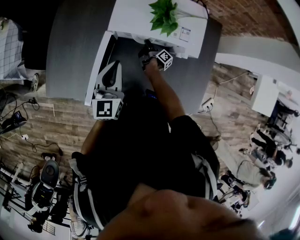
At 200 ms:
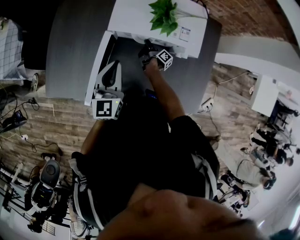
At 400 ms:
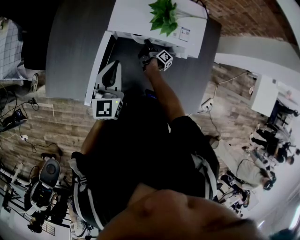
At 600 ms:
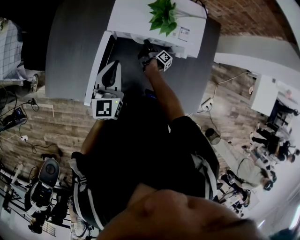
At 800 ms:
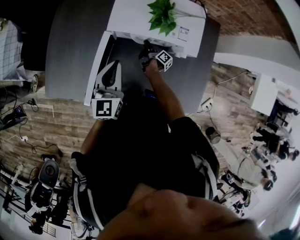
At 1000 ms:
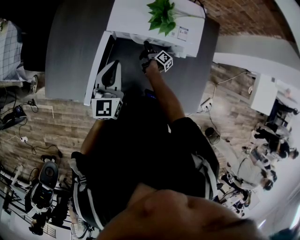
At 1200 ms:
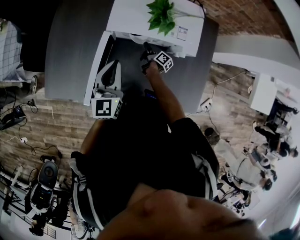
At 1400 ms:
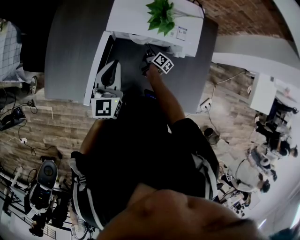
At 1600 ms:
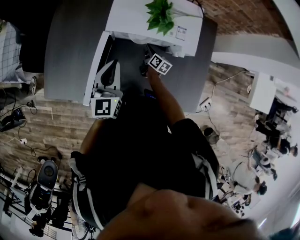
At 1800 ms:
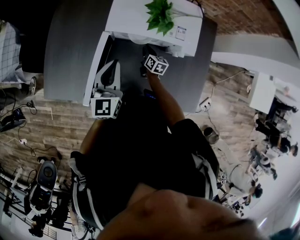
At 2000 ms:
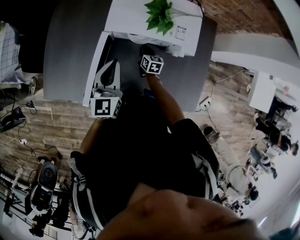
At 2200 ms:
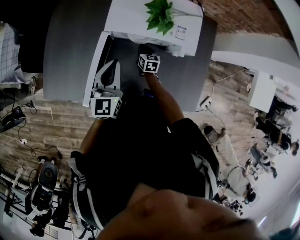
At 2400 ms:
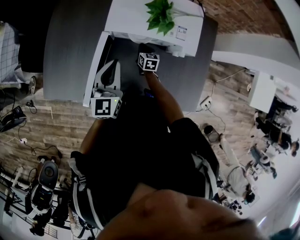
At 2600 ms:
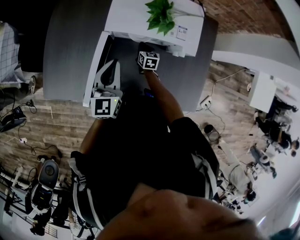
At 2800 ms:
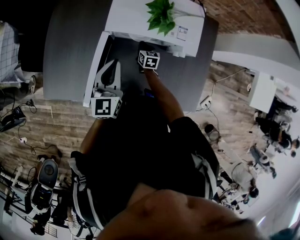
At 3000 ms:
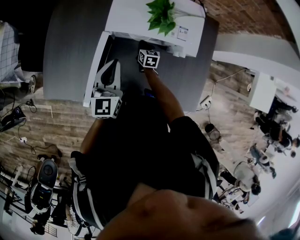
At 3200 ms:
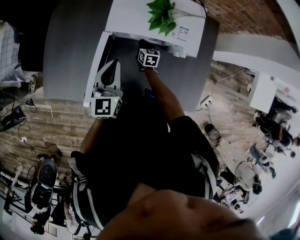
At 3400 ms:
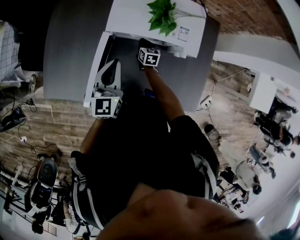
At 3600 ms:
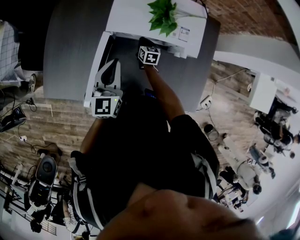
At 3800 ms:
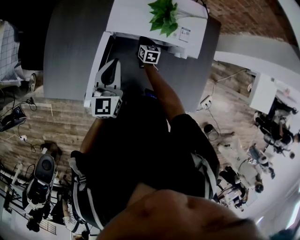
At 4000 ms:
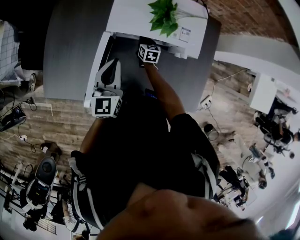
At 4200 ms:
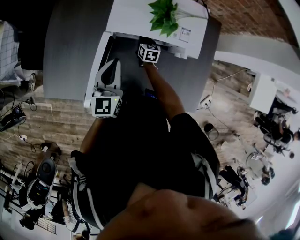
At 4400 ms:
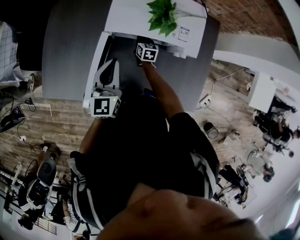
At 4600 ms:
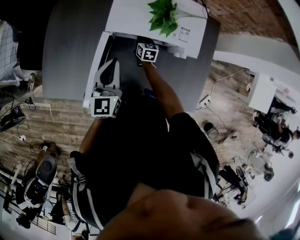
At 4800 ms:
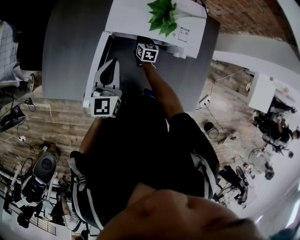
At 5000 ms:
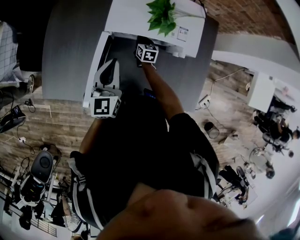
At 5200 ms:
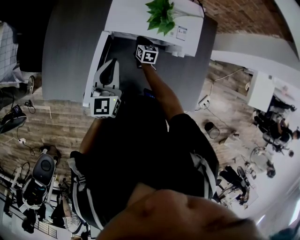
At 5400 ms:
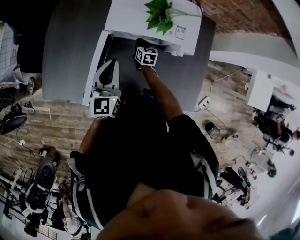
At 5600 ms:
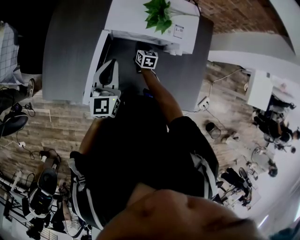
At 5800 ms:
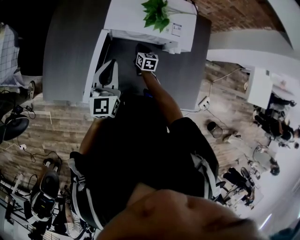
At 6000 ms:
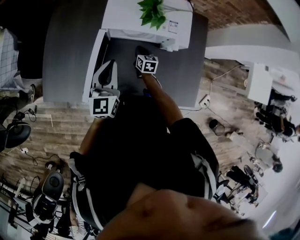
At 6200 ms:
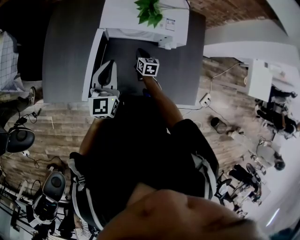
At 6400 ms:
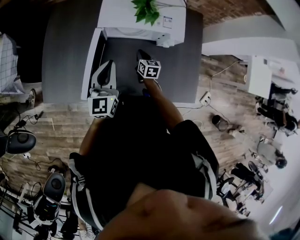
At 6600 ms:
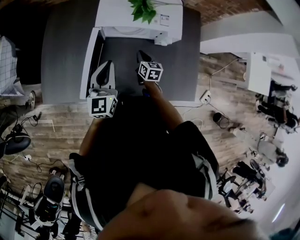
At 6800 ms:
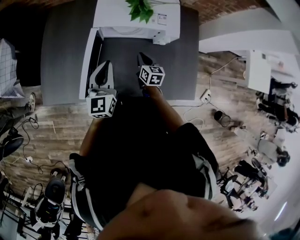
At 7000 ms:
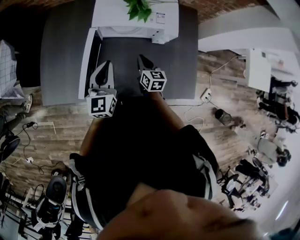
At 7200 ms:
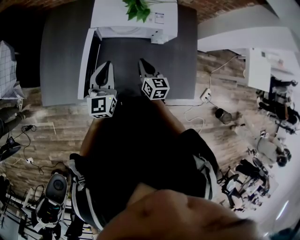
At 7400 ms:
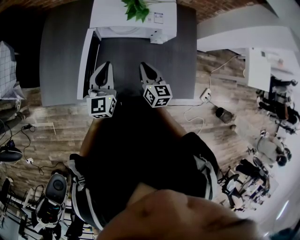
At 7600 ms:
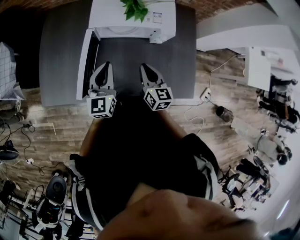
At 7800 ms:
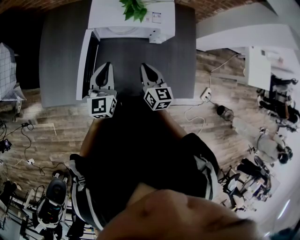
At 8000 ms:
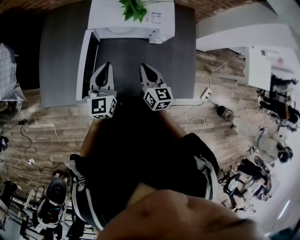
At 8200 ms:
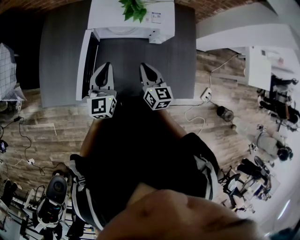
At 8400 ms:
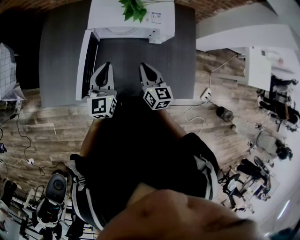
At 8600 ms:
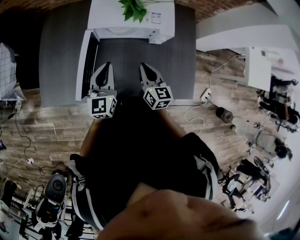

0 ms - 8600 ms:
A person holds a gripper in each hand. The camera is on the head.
5800 ms - 7200 ms: The left gripper moves approximately 5 cm.

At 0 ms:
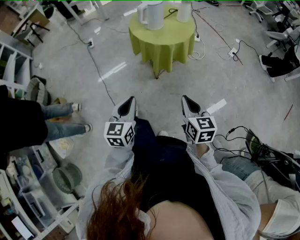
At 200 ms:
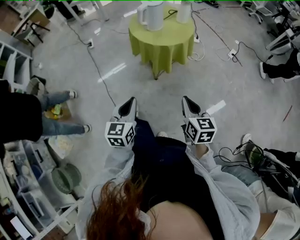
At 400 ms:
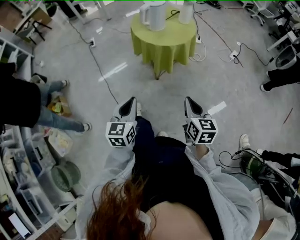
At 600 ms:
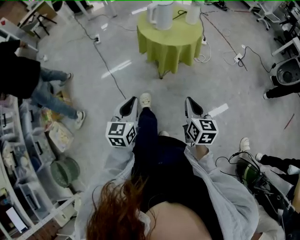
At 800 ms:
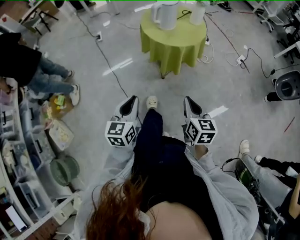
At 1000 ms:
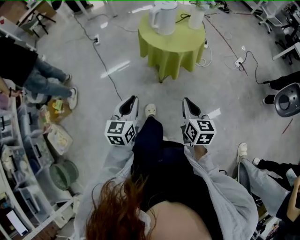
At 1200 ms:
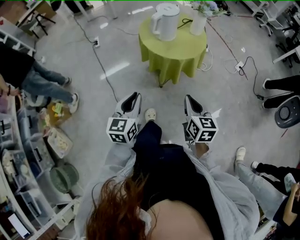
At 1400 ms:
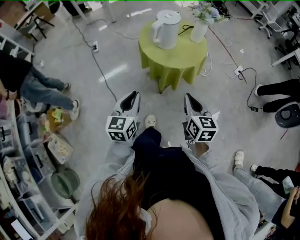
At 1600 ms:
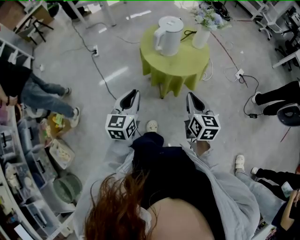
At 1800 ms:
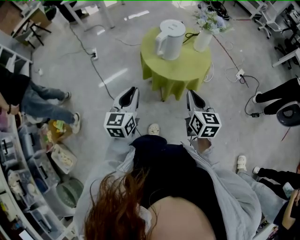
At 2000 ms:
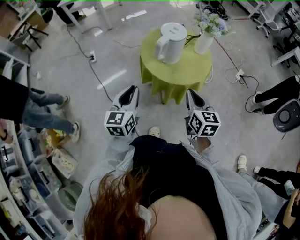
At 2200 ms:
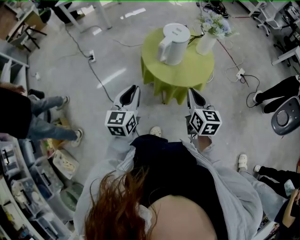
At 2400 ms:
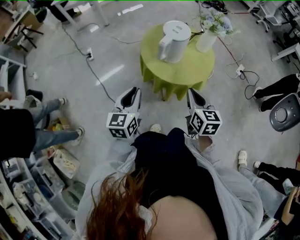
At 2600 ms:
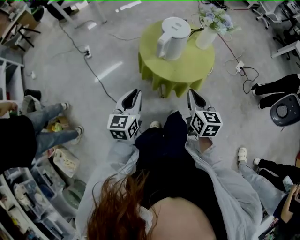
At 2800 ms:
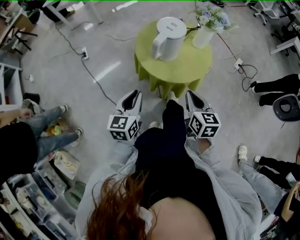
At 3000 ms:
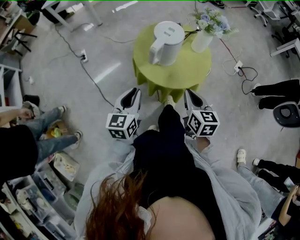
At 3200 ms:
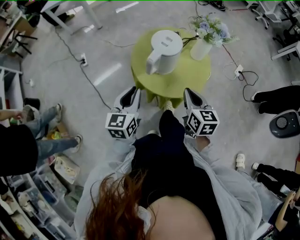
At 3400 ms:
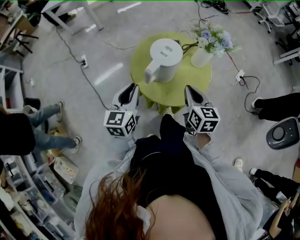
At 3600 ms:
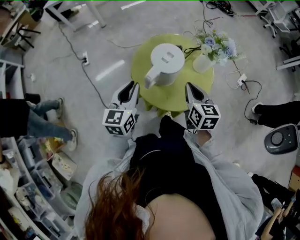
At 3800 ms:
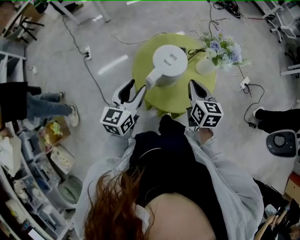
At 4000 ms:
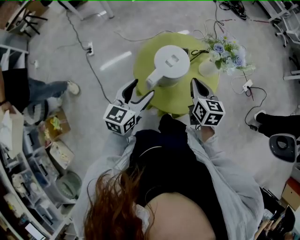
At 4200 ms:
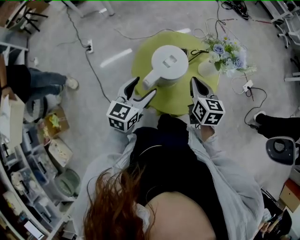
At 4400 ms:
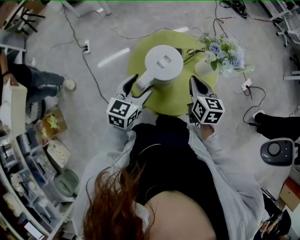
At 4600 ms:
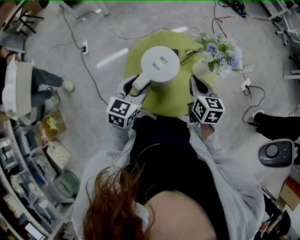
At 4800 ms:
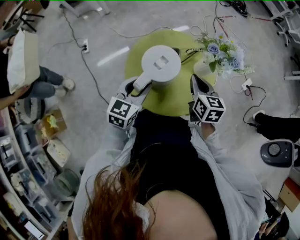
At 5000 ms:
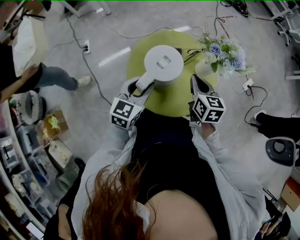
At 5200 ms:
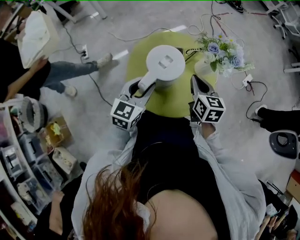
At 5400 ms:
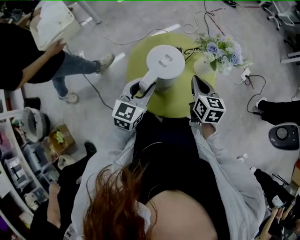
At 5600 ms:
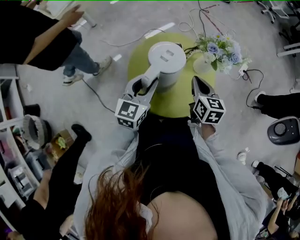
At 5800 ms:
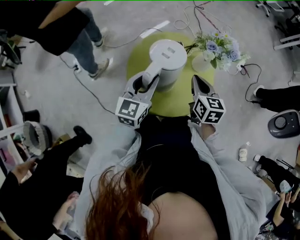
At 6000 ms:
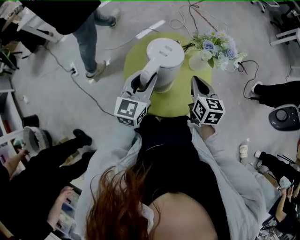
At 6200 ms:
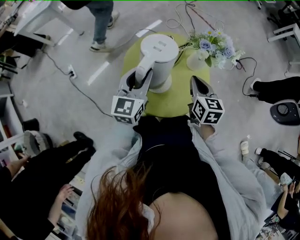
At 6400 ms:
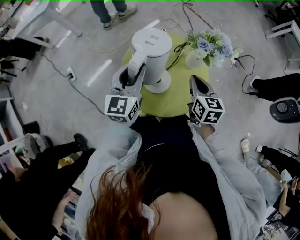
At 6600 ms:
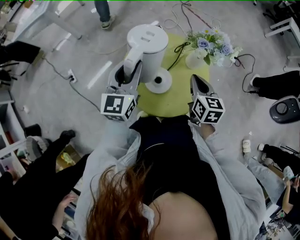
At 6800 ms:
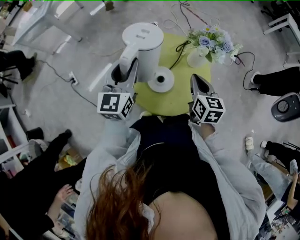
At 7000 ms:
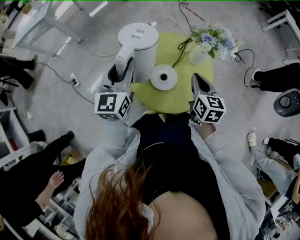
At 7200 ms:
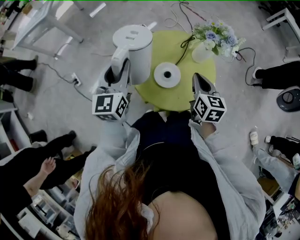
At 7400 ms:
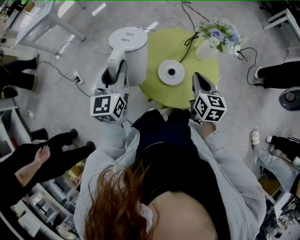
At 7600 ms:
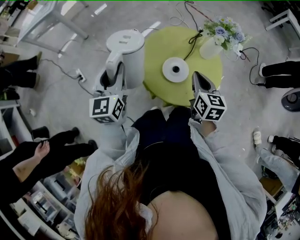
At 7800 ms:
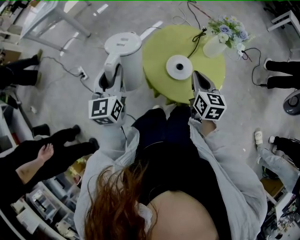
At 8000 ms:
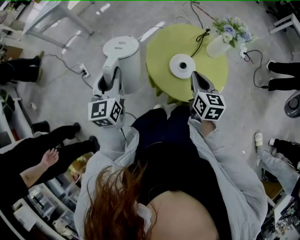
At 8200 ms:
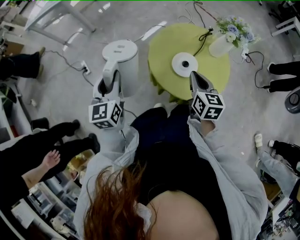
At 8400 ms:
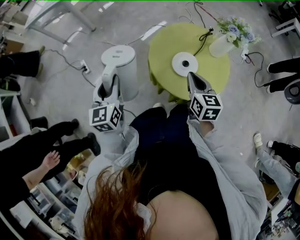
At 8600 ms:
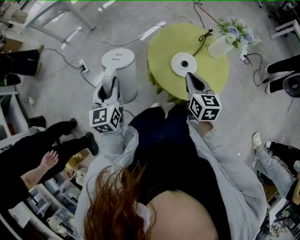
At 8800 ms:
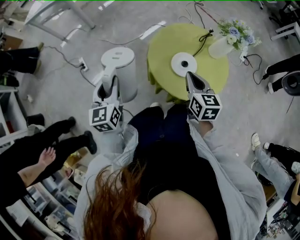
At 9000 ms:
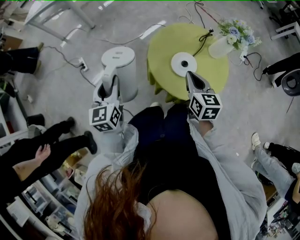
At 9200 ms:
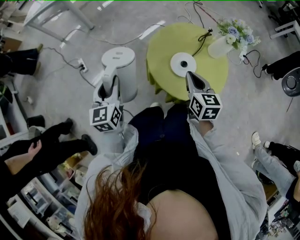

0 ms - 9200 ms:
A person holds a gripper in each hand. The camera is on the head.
0 ms - 1600 ms: Both grippers move forward, approximately 20 cm.
1600 ms - 3000 ms: Both grippers travel together forward, roughly 15 cm.
3000 ms - 4600 ms: The left gripper heads forward and to the right, covering some 20 cm, and opens its fingers. The right gripper travels forward by about 20 cm.
4600 ms - 6200 ms: The left gripper travels forward and upward by some 10 cm.
6200 ms - 7600 ms: The left gripper is displaced to the left by roughly 20 cm. The right gripper shifts roughly 10 cm to the left and backward.
7600 ms - 9200 ms: The left gripper travels to the left, backward and downward by some 15 cm; the right gripper shifts about 5 cm to the left.

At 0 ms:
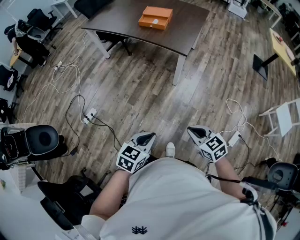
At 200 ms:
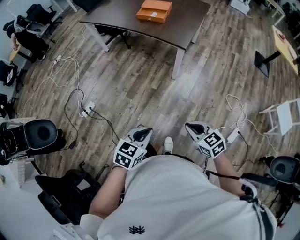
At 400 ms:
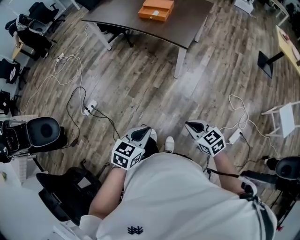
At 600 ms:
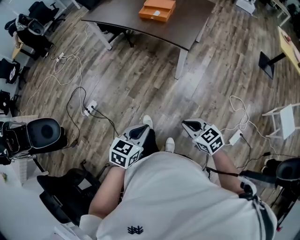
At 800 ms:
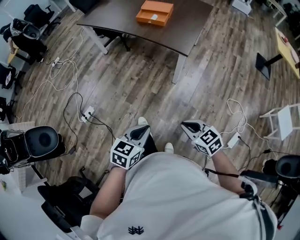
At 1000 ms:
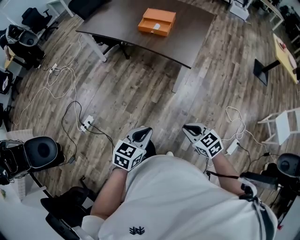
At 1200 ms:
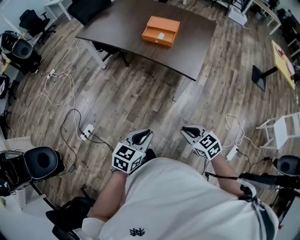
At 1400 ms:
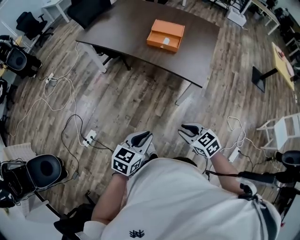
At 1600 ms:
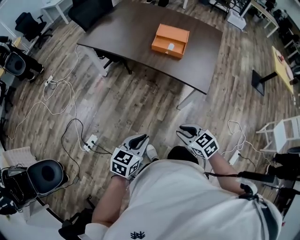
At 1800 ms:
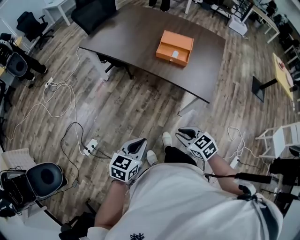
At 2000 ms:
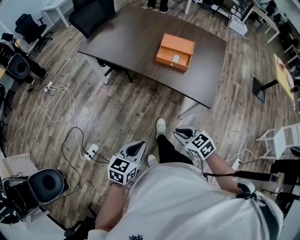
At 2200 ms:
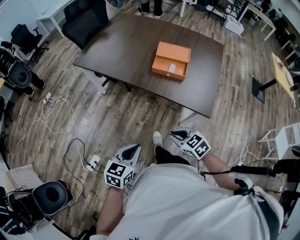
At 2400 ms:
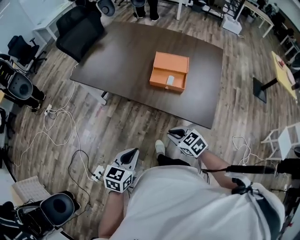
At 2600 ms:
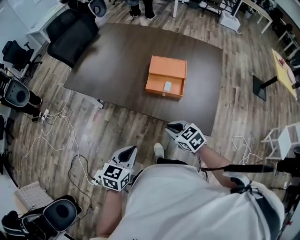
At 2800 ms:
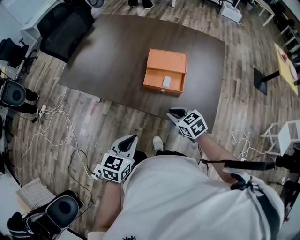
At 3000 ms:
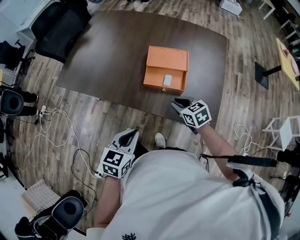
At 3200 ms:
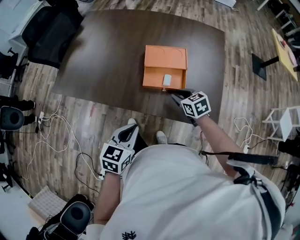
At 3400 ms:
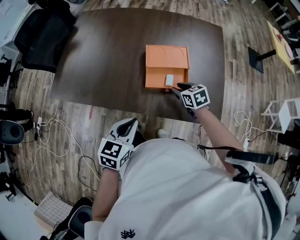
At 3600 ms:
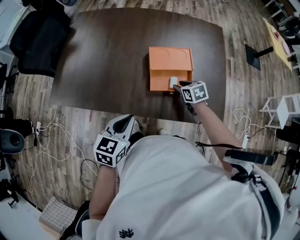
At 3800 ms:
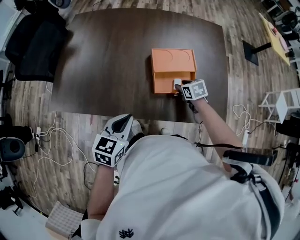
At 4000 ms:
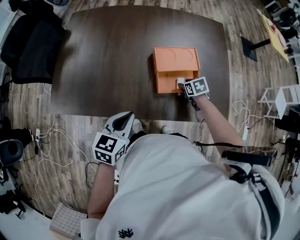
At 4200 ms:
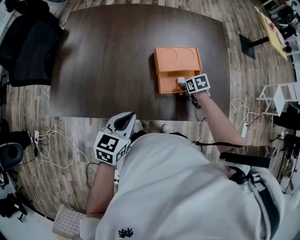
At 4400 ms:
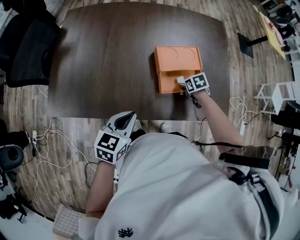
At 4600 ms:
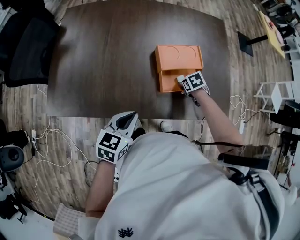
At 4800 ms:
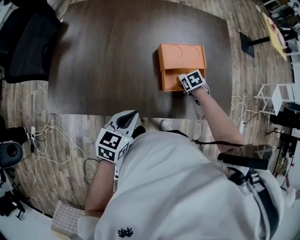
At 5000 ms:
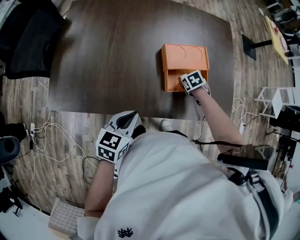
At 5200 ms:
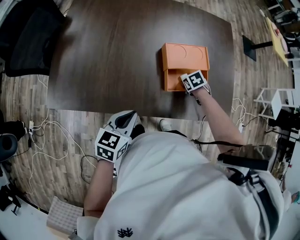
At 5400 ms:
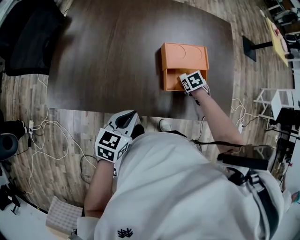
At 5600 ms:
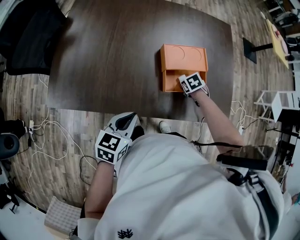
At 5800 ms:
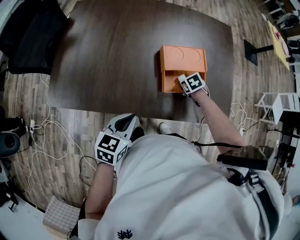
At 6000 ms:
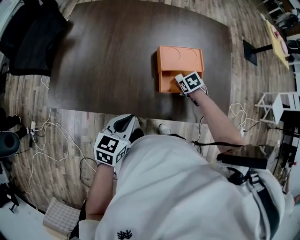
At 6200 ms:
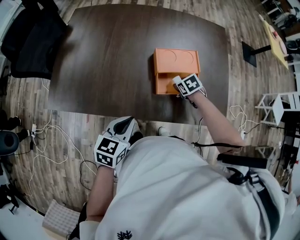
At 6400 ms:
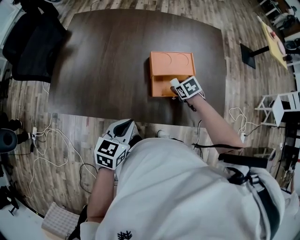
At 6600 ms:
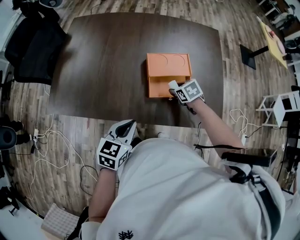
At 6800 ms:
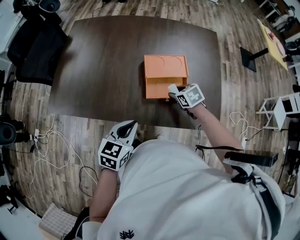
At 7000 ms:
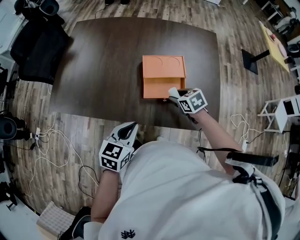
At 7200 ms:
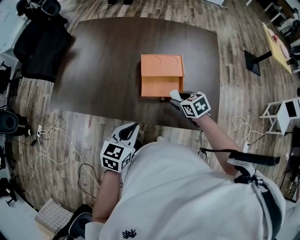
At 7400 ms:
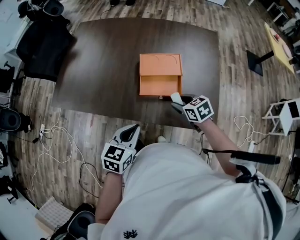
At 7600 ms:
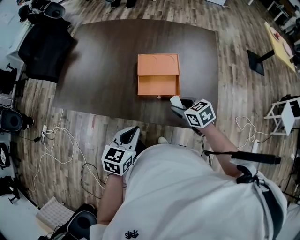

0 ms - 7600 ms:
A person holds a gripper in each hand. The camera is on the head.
0 ms - 1600 ms: The grippers both shift forward and to the left by roughly 40 cm. The right gripper opens up.
1600 ms - 3000 ms: Both grippers are carried forward, approximately 40 cm.
3000 ms - 4600 ms: The right gripper moves about 20 cm, tips its fingers downward by about 30 degrees, and opens, while the left gripper ends up about 25 cm from where it was.
4600 ms - 6000 ms: The grippers move only a little.
6000 ms - 7600 ms: The left gripper ends up approximately 20 cm from where it was. The right gripper moves some 20 cm, and tilts its fingers roughly 30 degrees upward.
